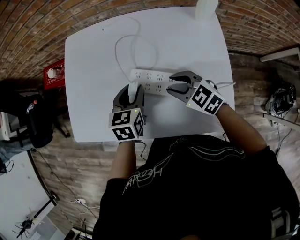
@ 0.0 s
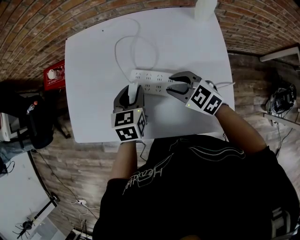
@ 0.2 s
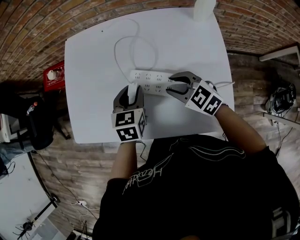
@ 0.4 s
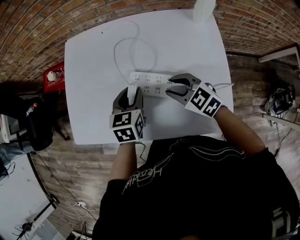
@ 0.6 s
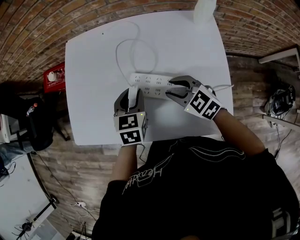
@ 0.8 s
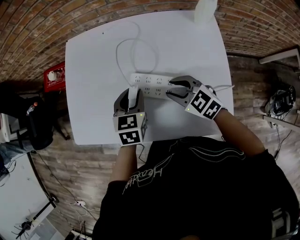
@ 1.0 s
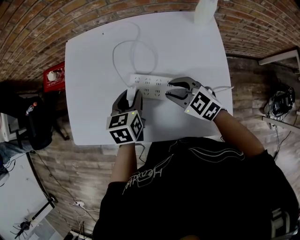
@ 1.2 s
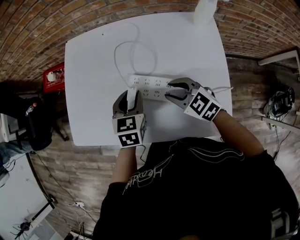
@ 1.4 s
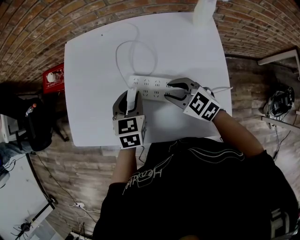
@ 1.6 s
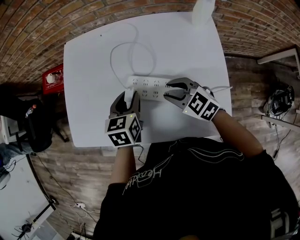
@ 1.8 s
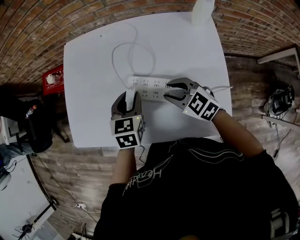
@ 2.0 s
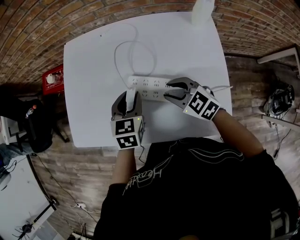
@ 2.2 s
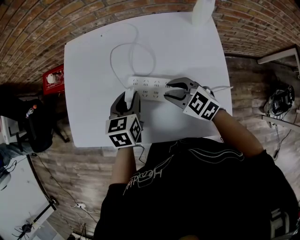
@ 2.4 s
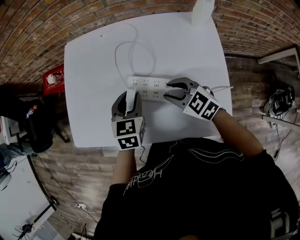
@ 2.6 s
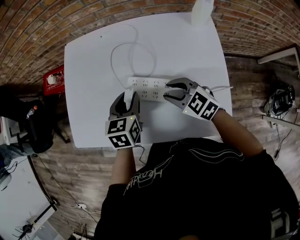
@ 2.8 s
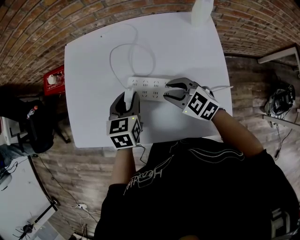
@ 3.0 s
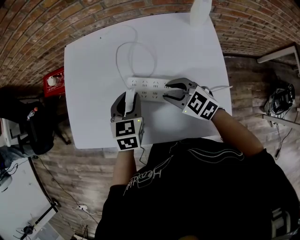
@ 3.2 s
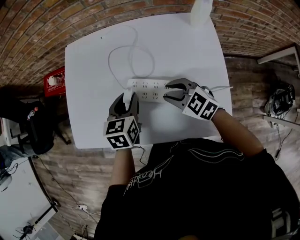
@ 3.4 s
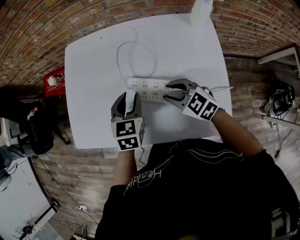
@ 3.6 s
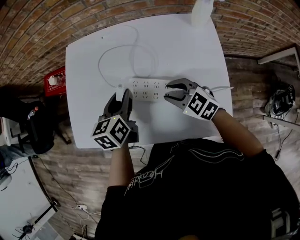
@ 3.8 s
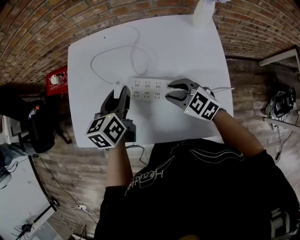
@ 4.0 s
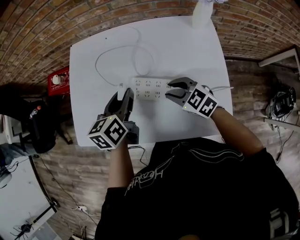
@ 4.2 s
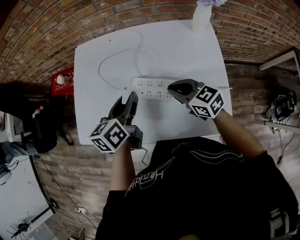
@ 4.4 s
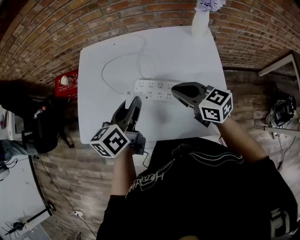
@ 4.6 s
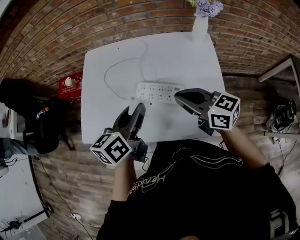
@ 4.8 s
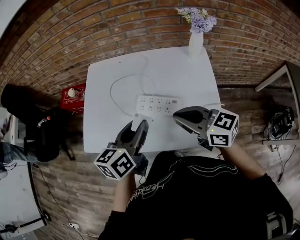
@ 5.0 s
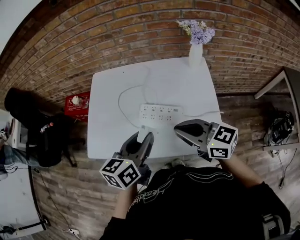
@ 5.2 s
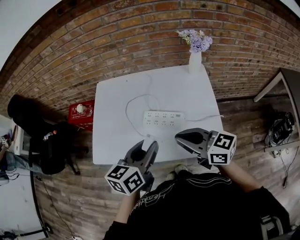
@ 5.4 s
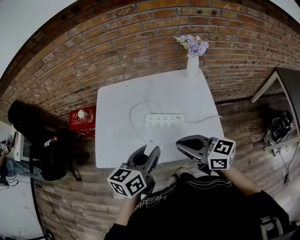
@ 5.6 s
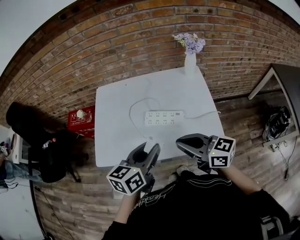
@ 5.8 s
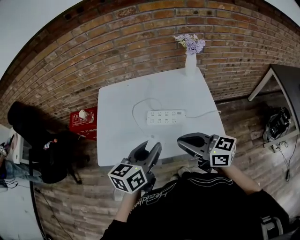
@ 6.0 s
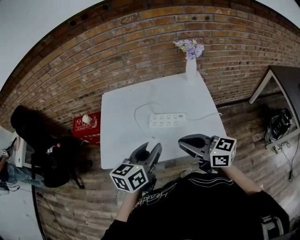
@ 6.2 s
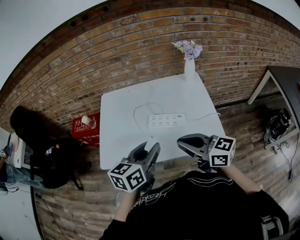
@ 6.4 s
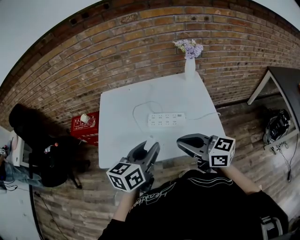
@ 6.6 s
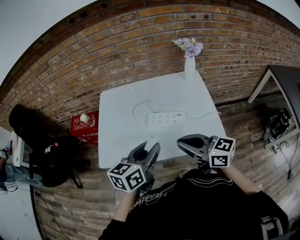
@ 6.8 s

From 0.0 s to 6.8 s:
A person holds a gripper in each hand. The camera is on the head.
From 0.0 s to 2.8 s: The grippers make only small movements.
From 2.8 s to 4.0 s: The left gripper heads upward, covering approximately 5 cm.
From 4.0 s to 5.4 s: The left gripper travels backward and upward by roughly 20 cm, while the right gripper travels upward and backward by about 25 cm, swivels some 40 degrees, and closes its fingers.
From 5.4 s to 6.8 s: The left gripper shifts by about 5 cm. Meanwhile the right gripper goes roughly 5 cm backward.

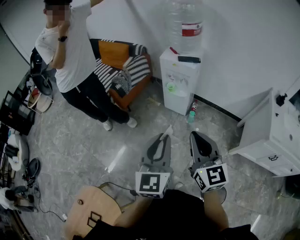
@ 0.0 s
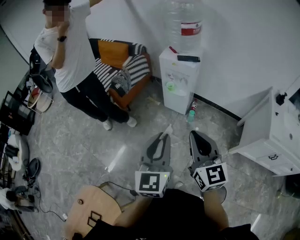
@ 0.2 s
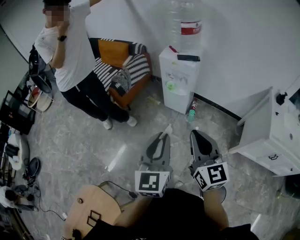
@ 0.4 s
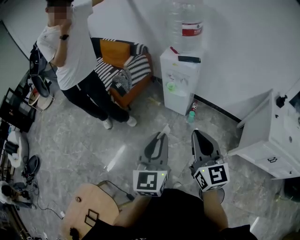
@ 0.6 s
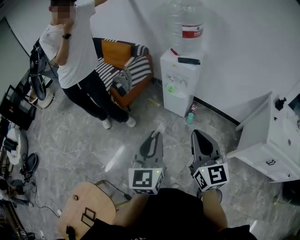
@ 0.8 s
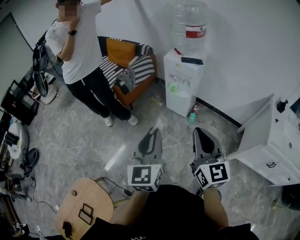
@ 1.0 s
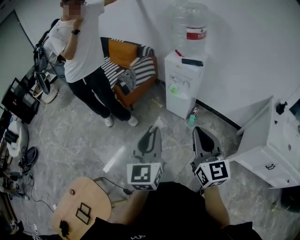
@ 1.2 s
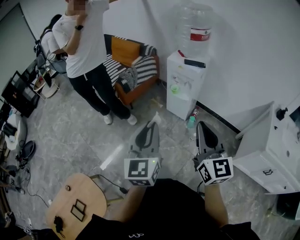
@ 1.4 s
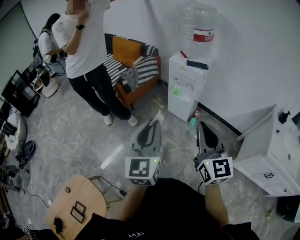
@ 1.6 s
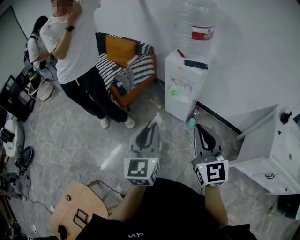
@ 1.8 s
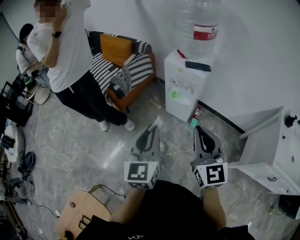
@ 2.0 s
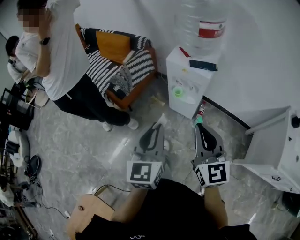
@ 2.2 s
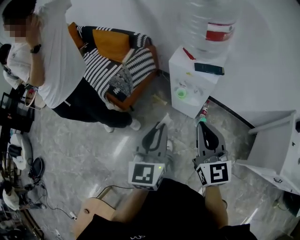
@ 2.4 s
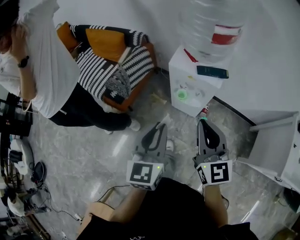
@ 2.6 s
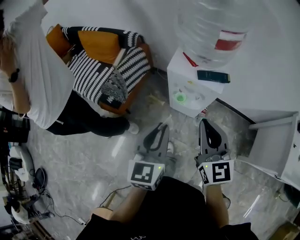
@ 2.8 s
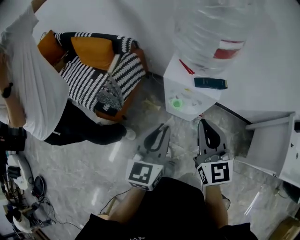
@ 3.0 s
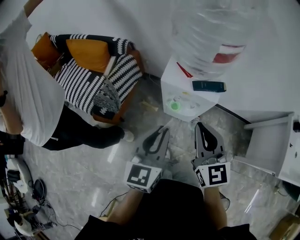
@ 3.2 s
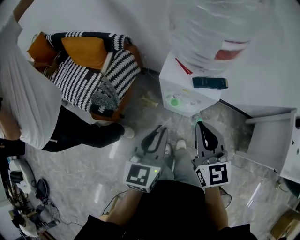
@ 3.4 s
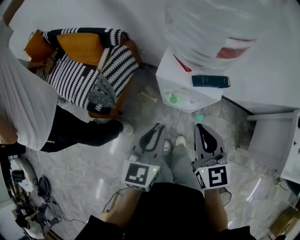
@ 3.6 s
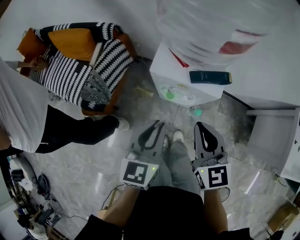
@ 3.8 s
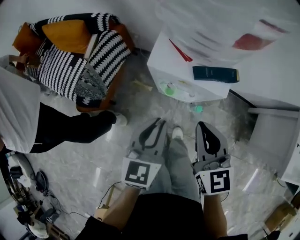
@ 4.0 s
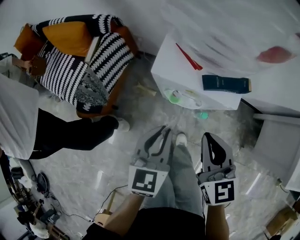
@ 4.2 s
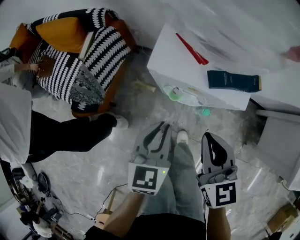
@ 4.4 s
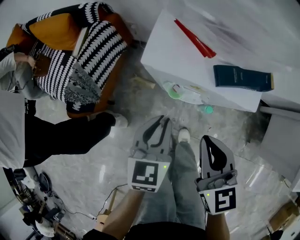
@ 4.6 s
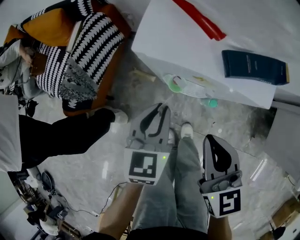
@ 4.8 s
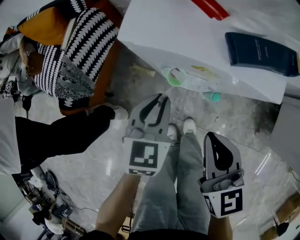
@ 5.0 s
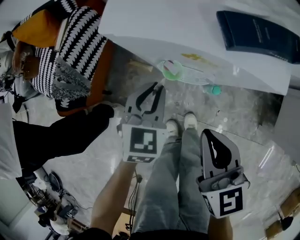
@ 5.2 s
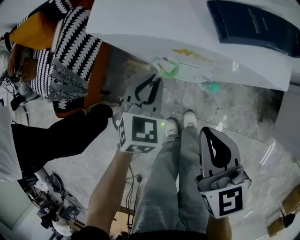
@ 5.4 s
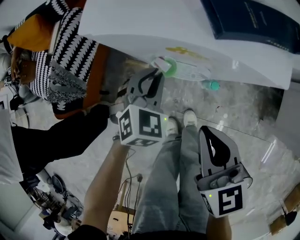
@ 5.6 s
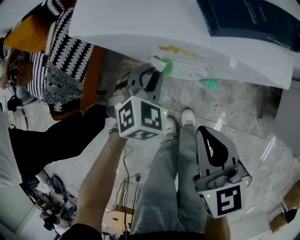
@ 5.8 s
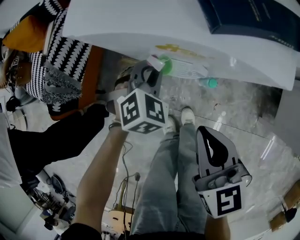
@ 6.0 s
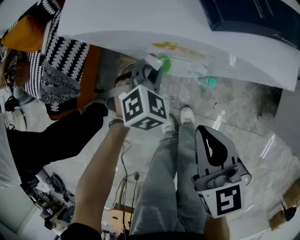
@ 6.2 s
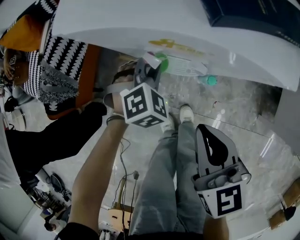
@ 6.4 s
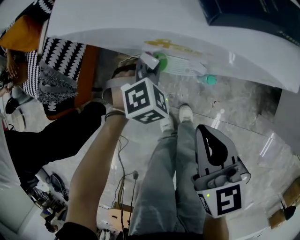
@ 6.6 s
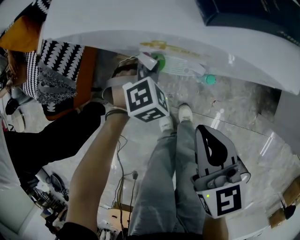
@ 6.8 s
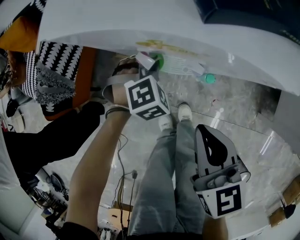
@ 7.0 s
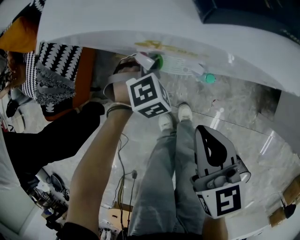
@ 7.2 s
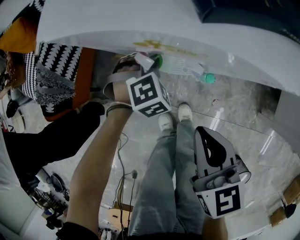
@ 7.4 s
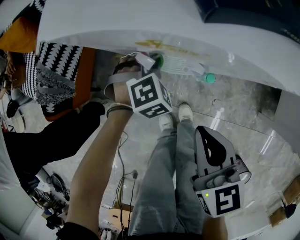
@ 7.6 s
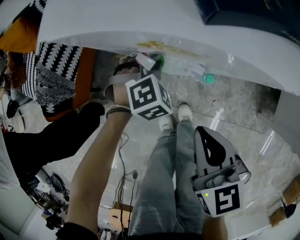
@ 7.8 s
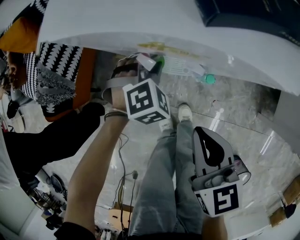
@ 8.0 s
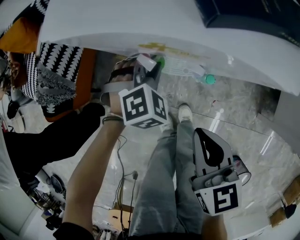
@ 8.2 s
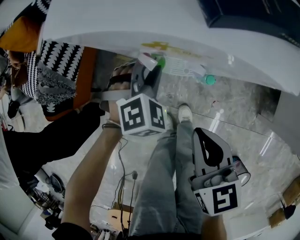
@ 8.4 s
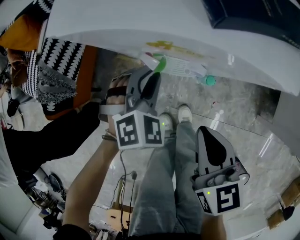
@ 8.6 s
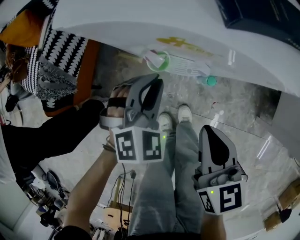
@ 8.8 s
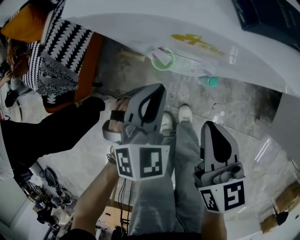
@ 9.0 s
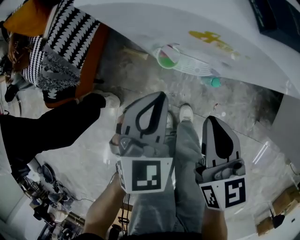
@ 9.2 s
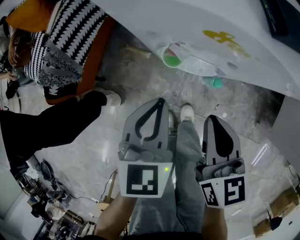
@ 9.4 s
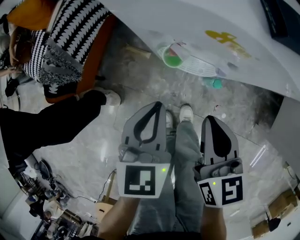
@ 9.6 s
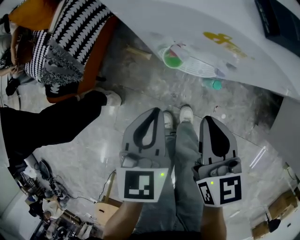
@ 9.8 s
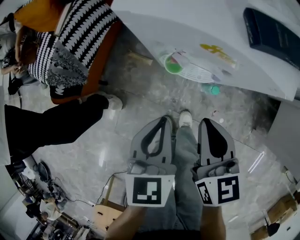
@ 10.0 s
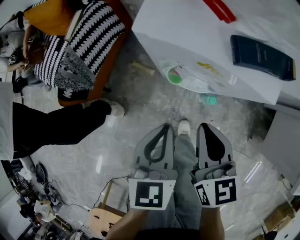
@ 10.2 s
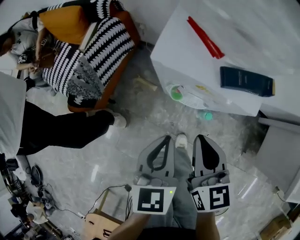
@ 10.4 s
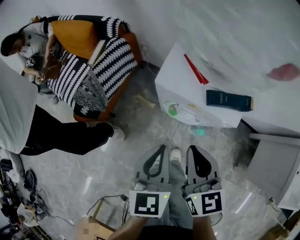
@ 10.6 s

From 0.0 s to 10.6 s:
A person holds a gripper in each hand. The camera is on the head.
From 0.0 s to 1.6 s: The grippers move only a little.
From 1.6 s to 3.0 s: The two grippers travel together, forward, roughly 40 cm. The left gripper changes its angle by roughly 30 degrees.
From 3.0 s to 4.6 s: The left gripper moves downward and forward, approximately 30 cm. The right gripper is displaced downward by roughly 25 cm, and swivels about 20 degrees.
From 4.6 s to 6.0 s: The left gripper is displaced downward and forward by approximately 20 cm, and rotates around the line of its fingers by roughly 50 degrees, clockwise from behind, while the right gripper is displaced downward by about 10 cm.
From 6.0 s to 7.6 s: The left gripper shifts approximately 5 cm downward.
From 7.6 s to 9.0 s: The left gripper is displaced upward and backward by approximately 15 cm, and turns by some 30 degrees.
From 9.0 s to 10.6 s: Both grippers move upward, some 20 cm. The left gripper rolls counterclockwise, seen from behind, by some 50 degrees.

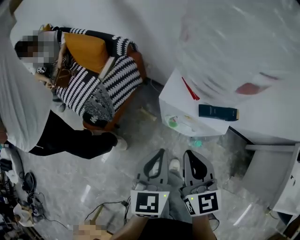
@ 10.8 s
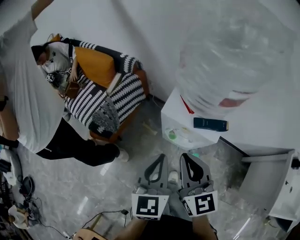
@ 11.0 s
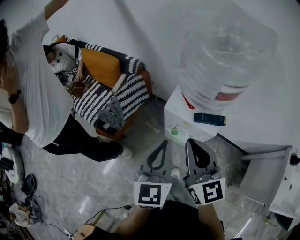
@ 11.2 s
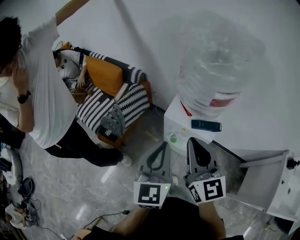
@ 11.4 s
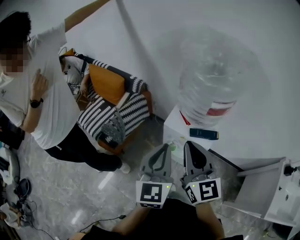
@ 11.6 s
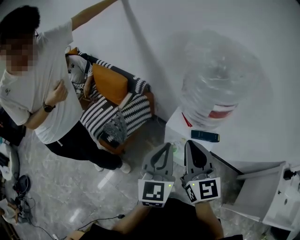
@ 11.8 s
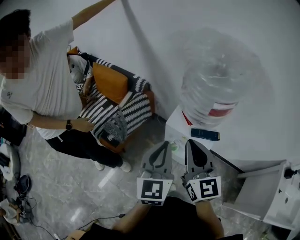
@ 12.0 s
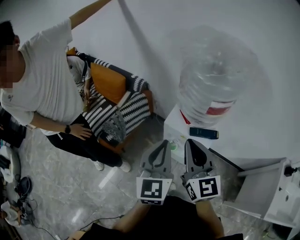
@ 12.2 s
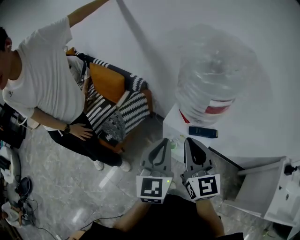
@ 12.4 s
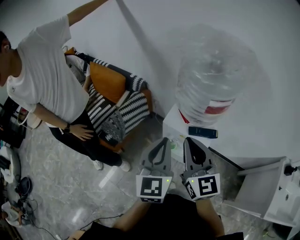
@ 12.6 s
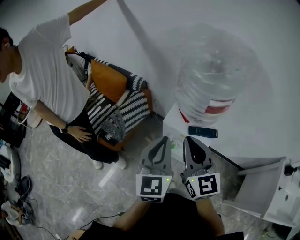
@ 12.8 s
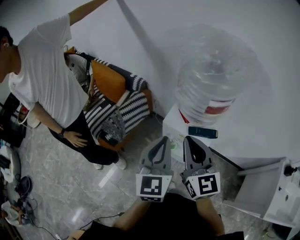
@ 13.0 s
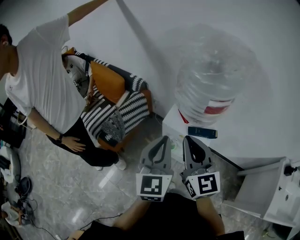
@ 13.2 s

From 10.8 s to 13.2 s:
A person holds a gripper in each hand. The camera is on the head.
From 10.8 s to 12.0 s: Both grippers travel together upward, approximately 20 cm. The left gripper turns by approximately 20 degrees.
From 12.0 s to 13.2 s: The grippers stay close to where they were, moving slightly.

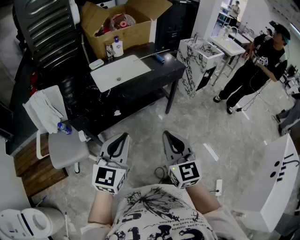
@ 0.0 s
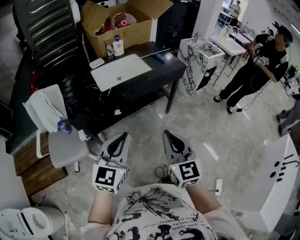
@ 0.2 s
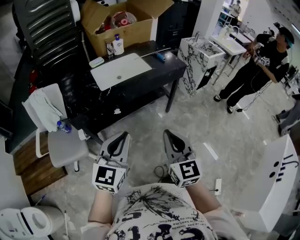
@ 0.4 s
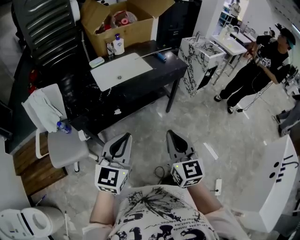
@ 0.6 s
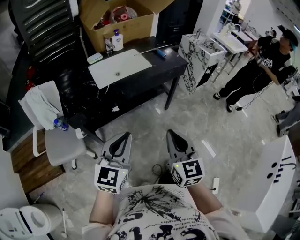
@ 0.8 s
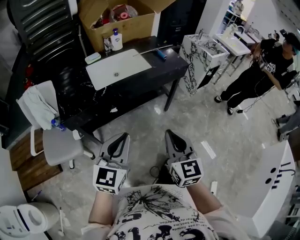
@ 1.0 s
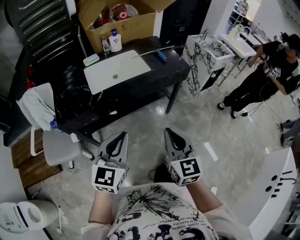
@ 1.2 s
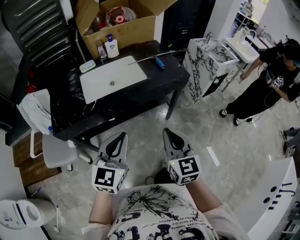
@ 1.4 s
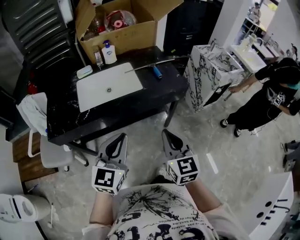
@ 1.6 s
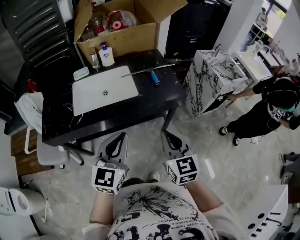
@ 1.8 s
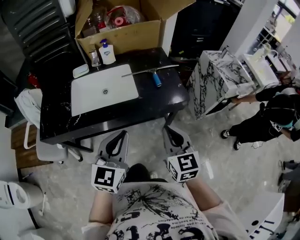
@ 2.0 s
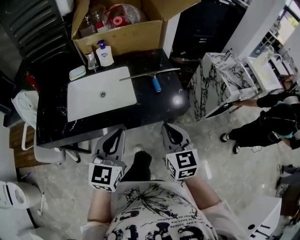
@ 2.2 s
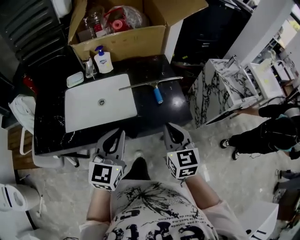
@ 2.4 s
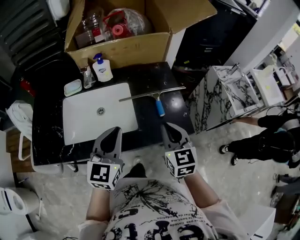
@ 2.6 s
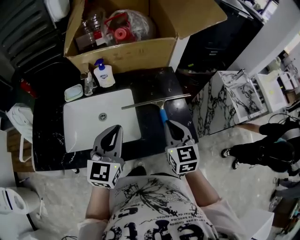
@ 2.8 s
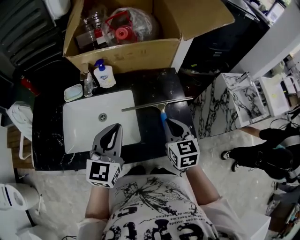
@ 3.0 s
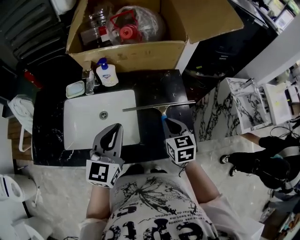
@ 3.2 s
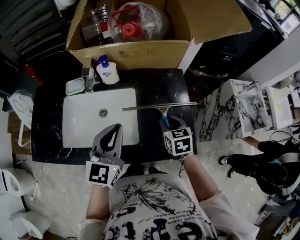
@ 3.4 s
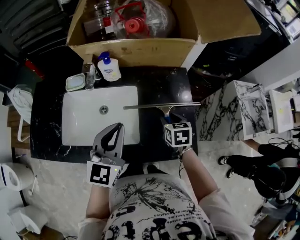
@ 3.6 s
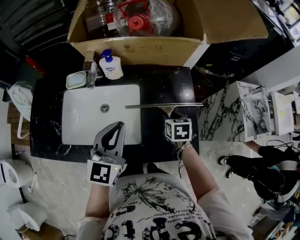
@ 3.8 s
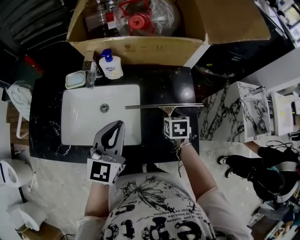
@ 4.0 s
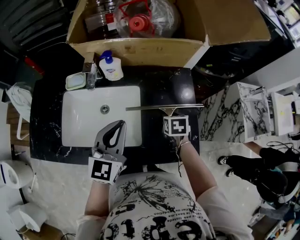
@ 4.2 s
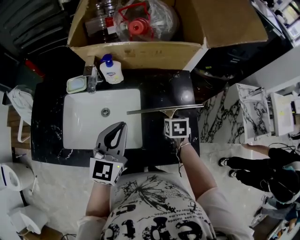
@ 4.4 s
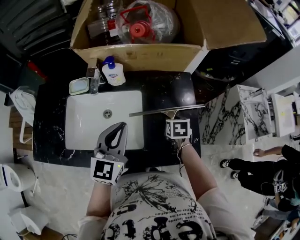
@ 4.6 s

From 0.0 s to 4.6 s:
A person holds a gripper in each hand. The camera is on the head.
From 0.0 s to 1.6 s: The two grippers go roughly 30 cm forward and to the right.
From 1.6 s to 3.0 s: Both grippers move forward, some 40 cm.
From 3.0 s to 4.6 s: The right gripper shifts about 20 cm downward and forward, points its fingers roughly 30 degrees further downward, and opens up; the left gripper moves some 5 cm.
